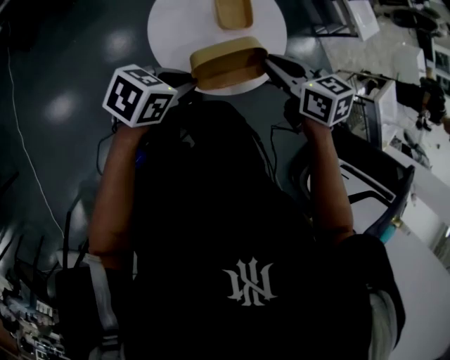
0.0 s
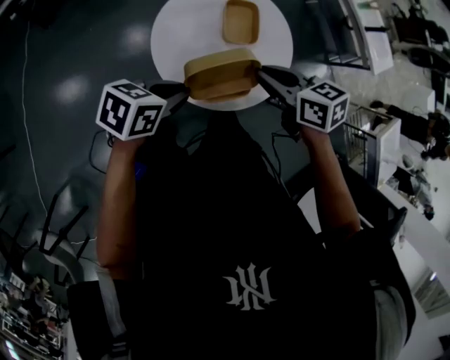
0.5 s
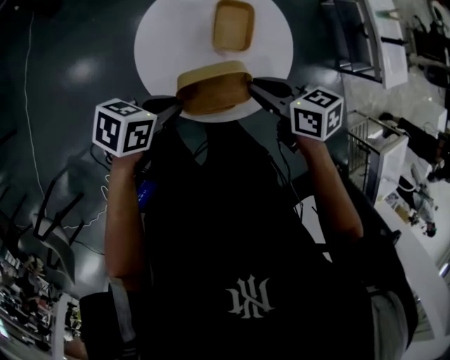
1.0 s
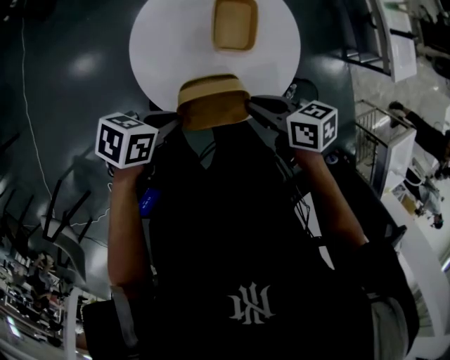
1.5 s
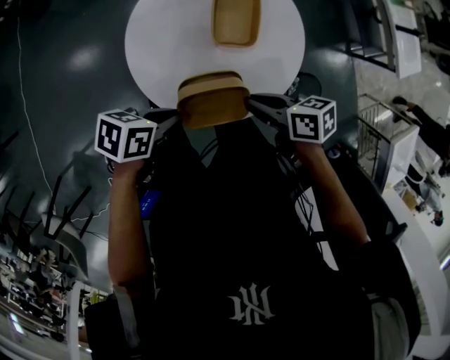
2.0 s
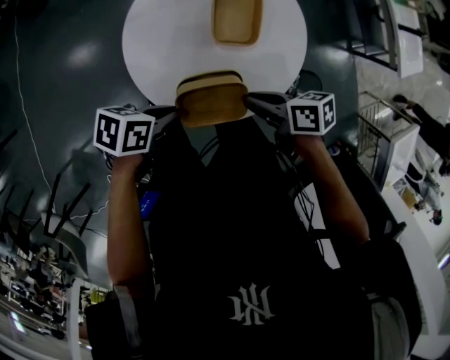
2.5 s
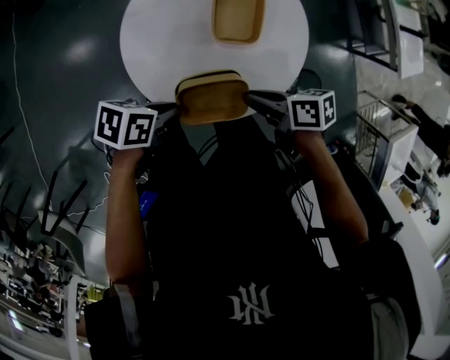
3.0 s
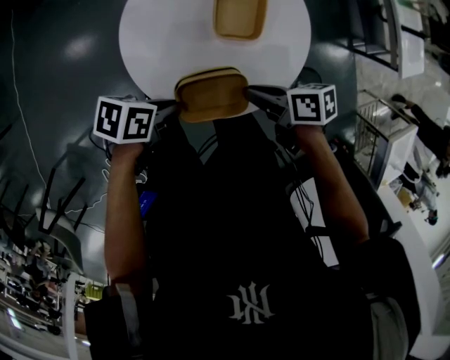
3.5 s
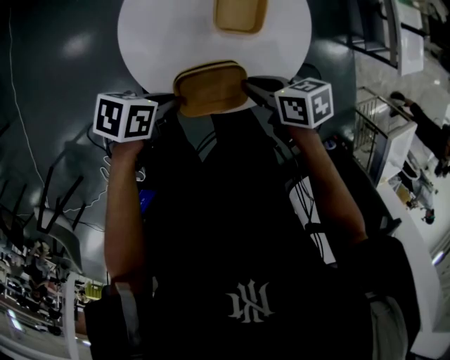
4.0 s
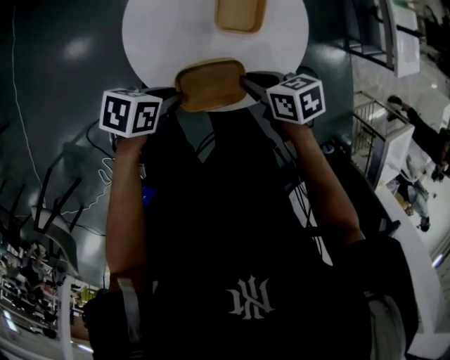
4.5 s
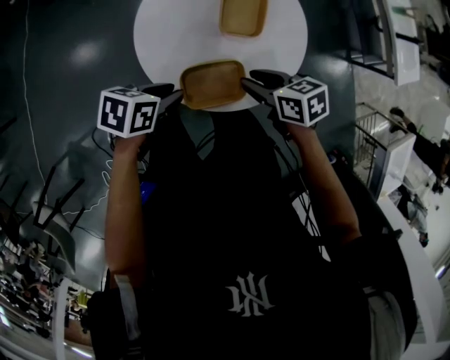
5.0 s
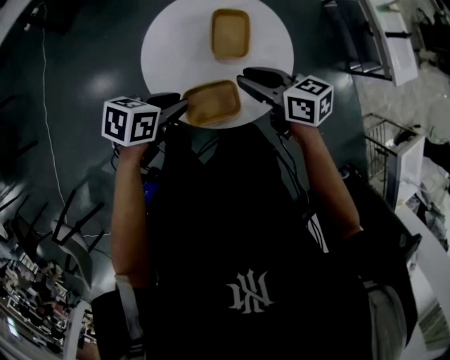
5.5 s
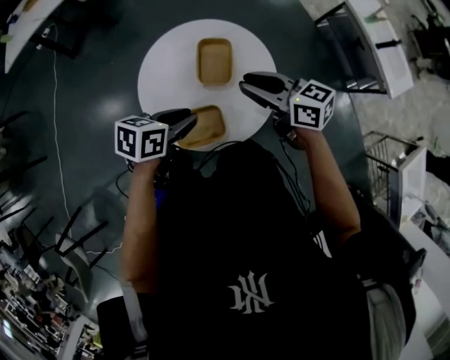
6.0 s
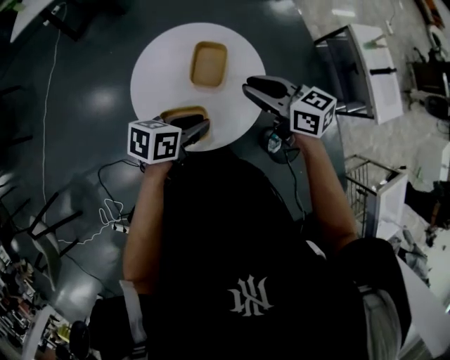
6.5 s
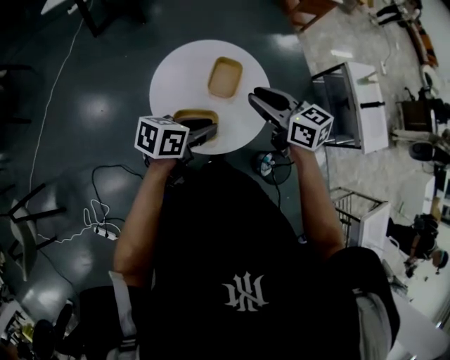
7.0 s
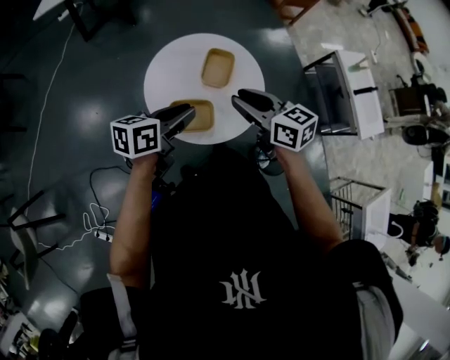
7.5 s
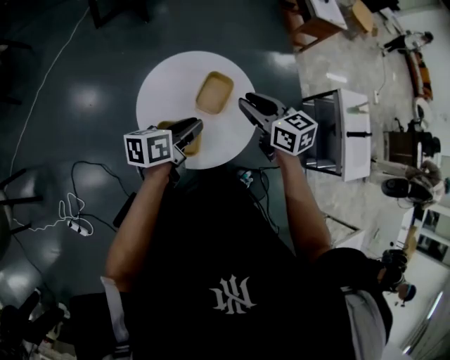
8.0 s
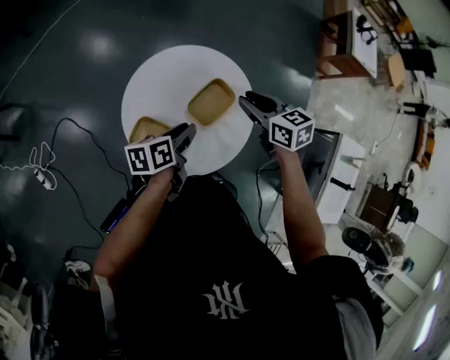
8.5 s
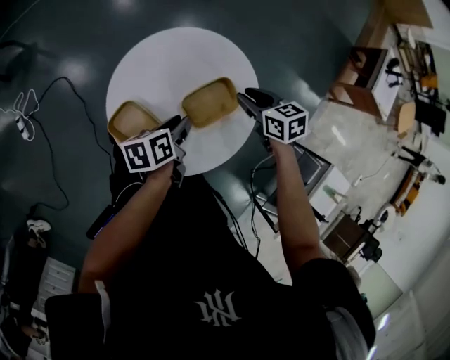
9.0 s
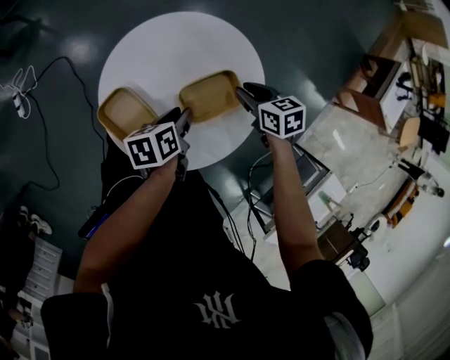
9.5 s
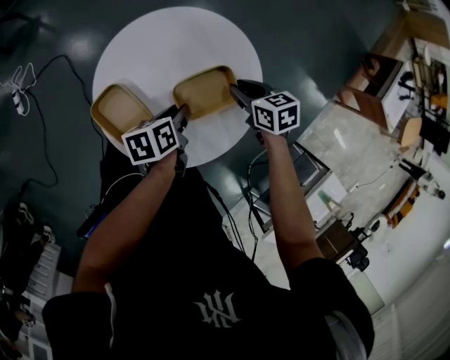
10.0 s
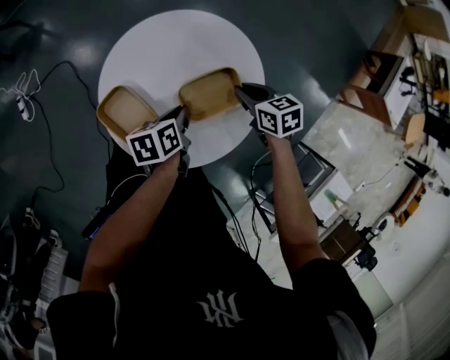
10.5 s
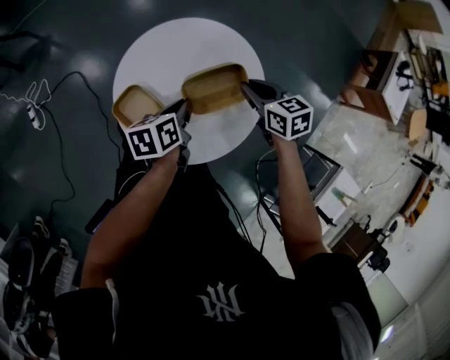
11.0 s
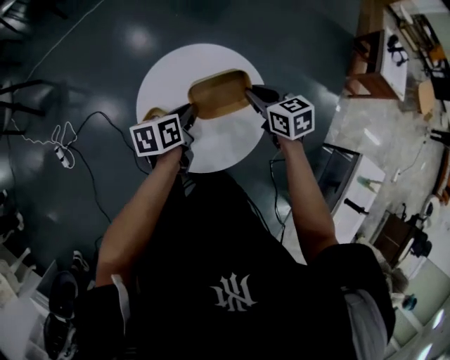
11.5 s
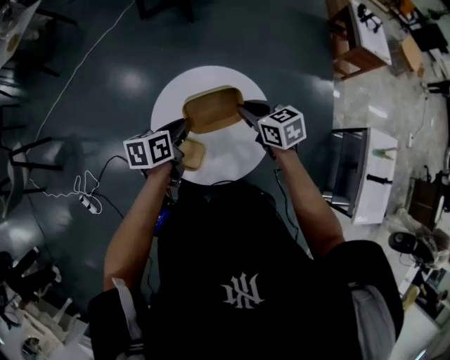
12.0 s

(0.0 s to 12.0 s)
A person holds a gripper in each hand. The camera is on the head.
0.0 s - 2.0 s: Both grippers move downward, roughly 15 cm. The right gripper changes its angle by some 40 degrees; the left gripper rotates roughly 30 degrees.
2.0 s - 4.0 s: There are only small adjustments of the grippers.
4.0 s - 6.0 s: The grippers both shift upward by about 15 cm. The left gripper turns by about 30 degrees; the right gripper tilts its fingers roughly 30 degrees upward.
6.0 s - 8.0 s: The left gripper goes left and right, roughly 10 cm each way, reversing 2 times, and changes its angle by about 40 degrees, while the right gripper rotates about 20 degrees.
8.0 s - 10.0 s: Both grippers move downward, approximately 20 cm. The left gripper swivels approximately 60 degrees, while the right gripper turns by approximately 50 degrees.
10.0 s - 12.0 s: Both grippers move upward, about 20 cm. The left gripper swivels some 40 degrees, and closes. Meanwhile the right gripper changes its angle by about 30 degrees.

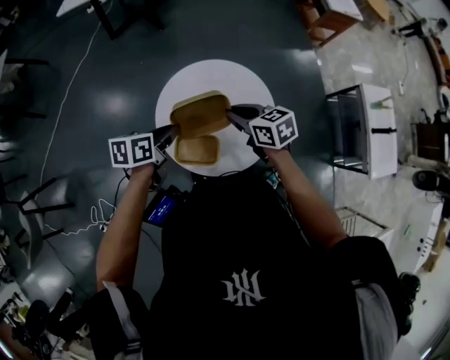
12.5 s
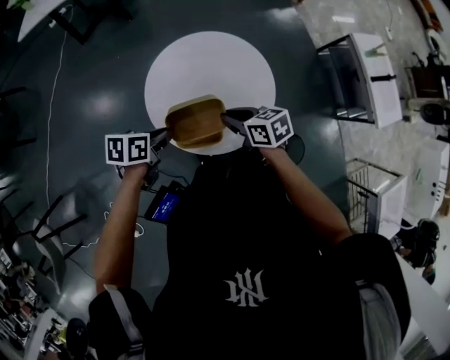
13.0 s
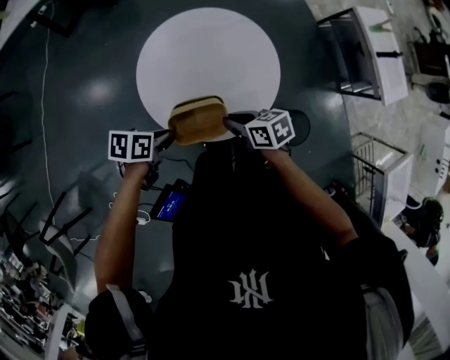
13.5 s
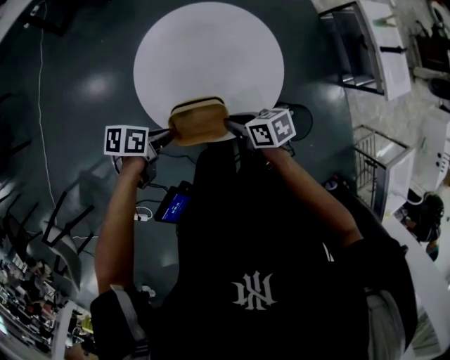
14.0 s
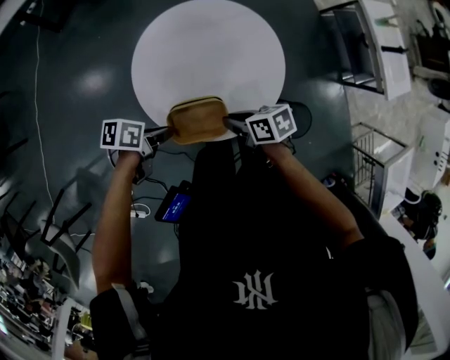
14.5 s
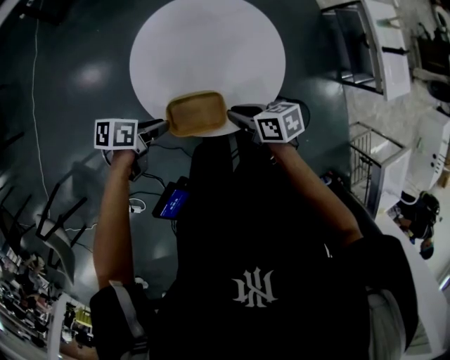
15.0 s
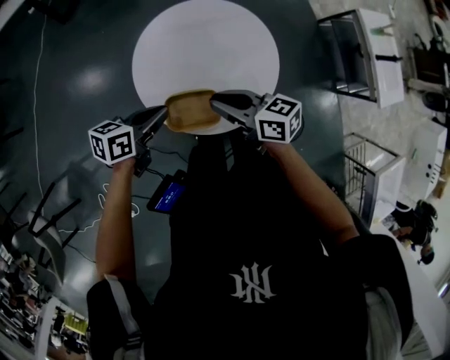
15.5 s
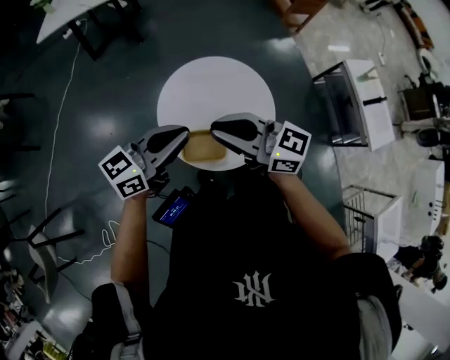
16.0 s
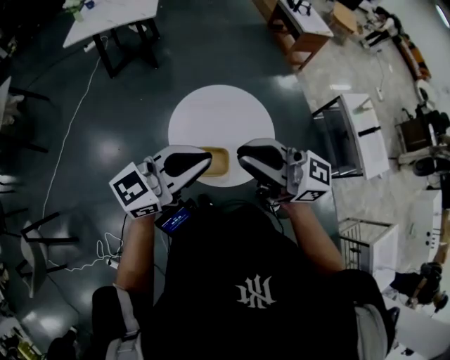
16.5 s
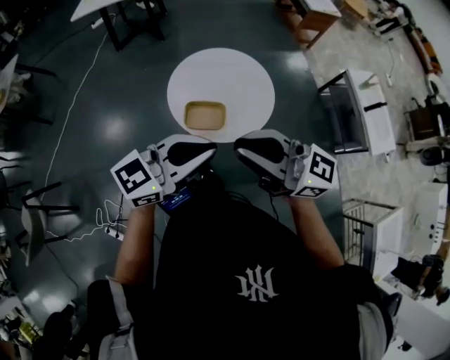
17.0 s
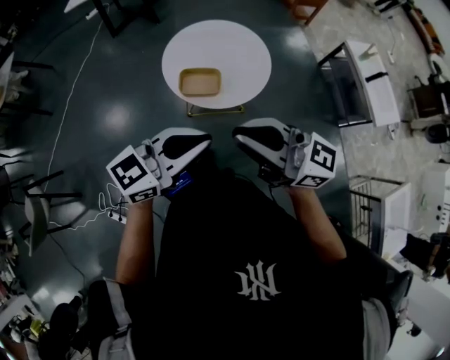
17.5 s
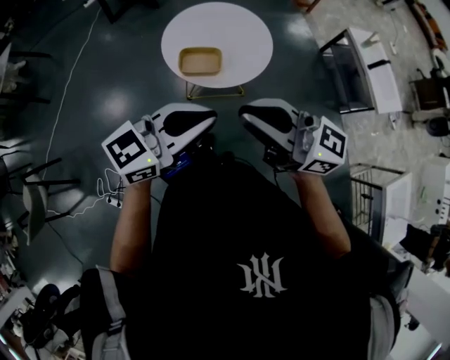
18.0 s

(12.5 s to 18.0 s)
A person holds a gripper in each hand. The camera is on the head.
12.5 s - 14.5 s: Both grippers move downward, roughly 15 cm. The left gripper rotates about 40 degrees; the right gripper changes its angle by some 40 degrees.
14.5 s - 16.0 s: Both grippers move upward, approximately 30 cm. The right gripper angles its fingers upward, by roughly 40 degrees, while the left gripper points its fingers approximately 40 degrees further upward.
16.0 s - 18.0 s: The left gripper ends up some 30 cm from where it was, while the right gripper shifts by roughly 30 cm.

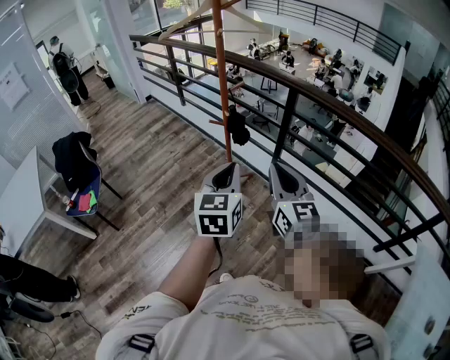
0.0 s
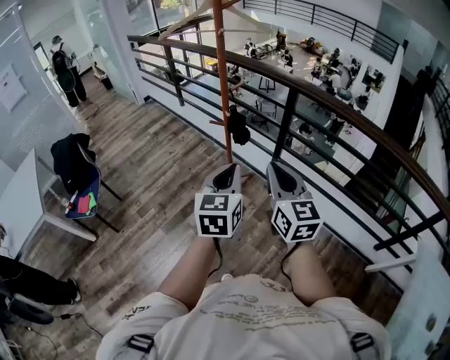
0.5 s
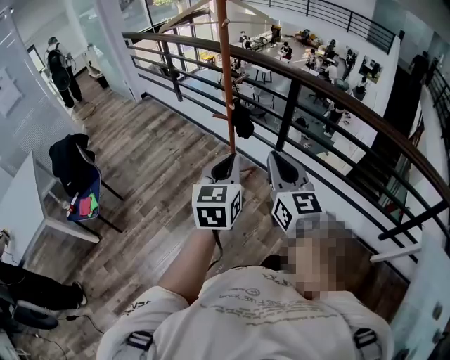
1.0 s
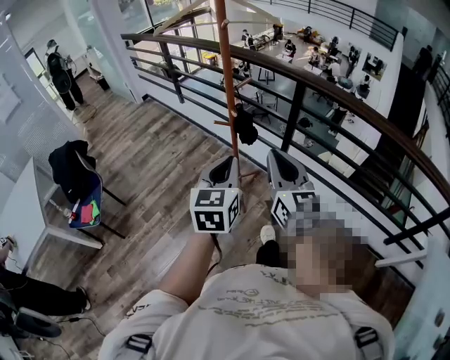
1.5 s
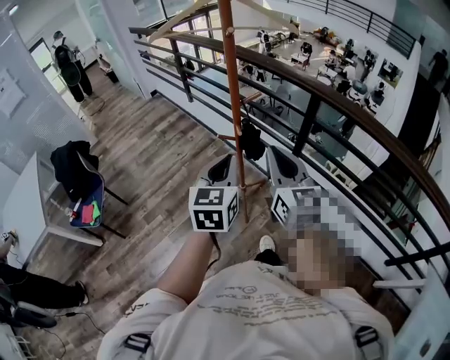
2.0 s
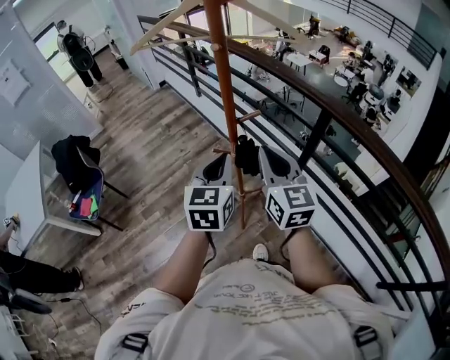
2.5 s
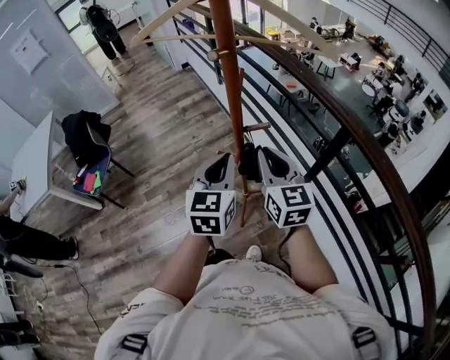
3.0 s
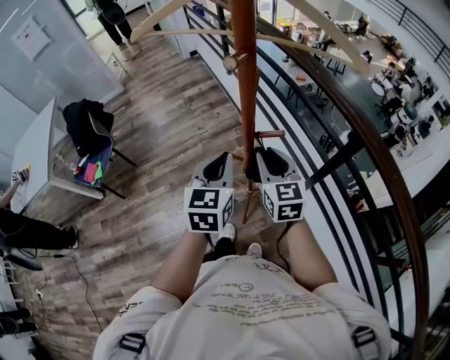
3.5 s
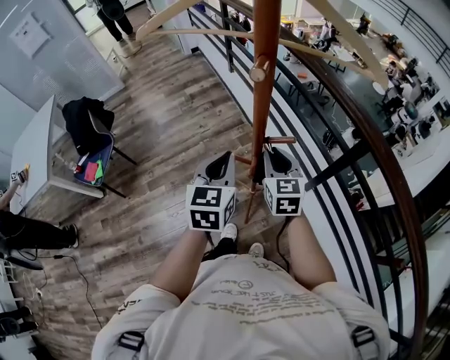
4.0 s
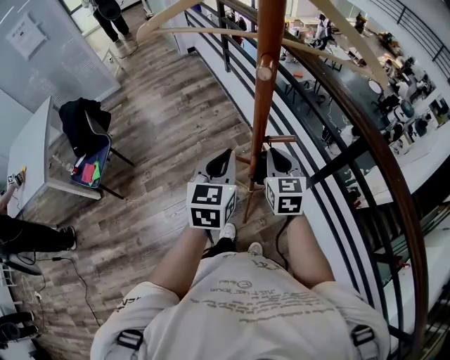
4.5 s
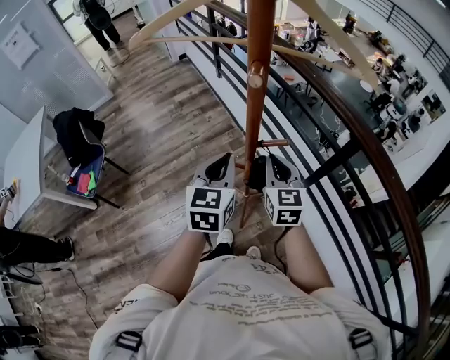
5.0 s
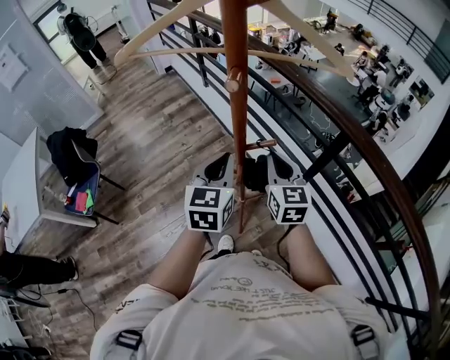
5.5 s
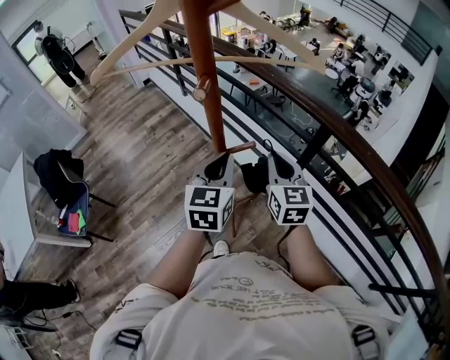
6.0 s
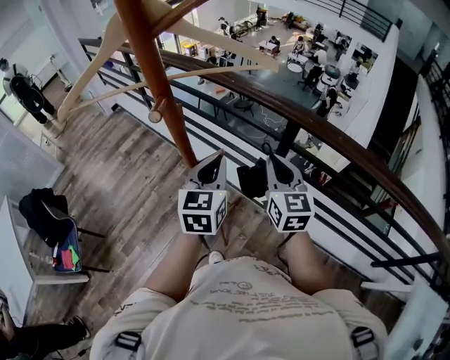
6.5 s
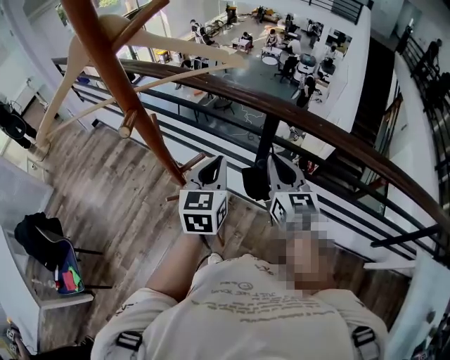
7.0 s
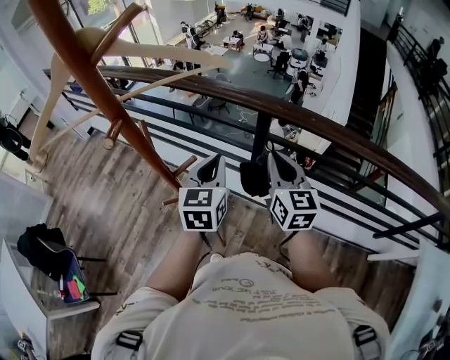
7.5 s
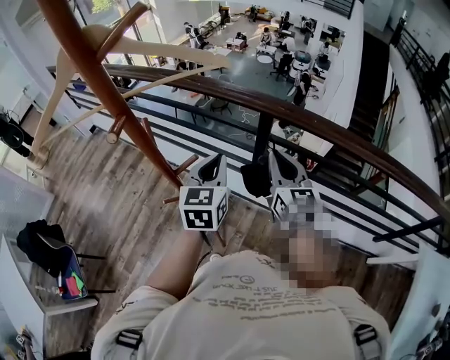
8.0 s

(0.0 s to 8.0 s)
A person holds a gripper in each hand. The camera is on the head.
0.0 s - 2.0 s: The two grippers go approximately 20 cm forward.
2.0 s - 4.0 s: The left gripper travels forward by roughly 20 cm; the right gripper travels forward and downward by some 30 cm, and turns by roughly 30 degrees.
4.0 s - 6.0 s: The left gripper shifts some 10 cm to the right, while the right gripper moves to the right and upward, approximately 10 cm.
6.0 s - 8.0 s: The two grippers go about 15 cm to the right. The right gripper rotates some 20 degrees.

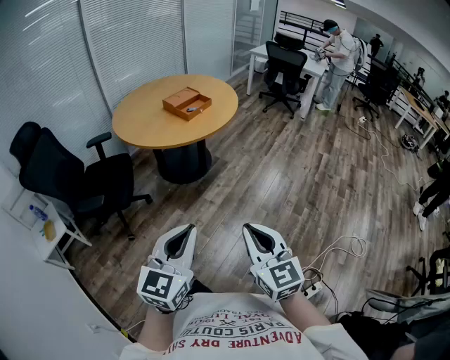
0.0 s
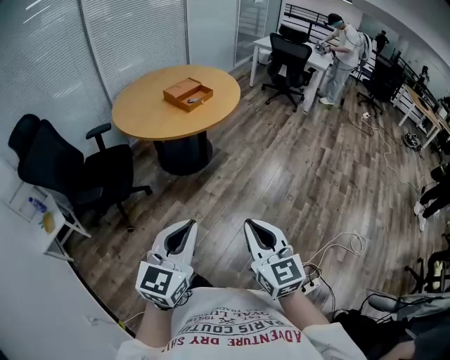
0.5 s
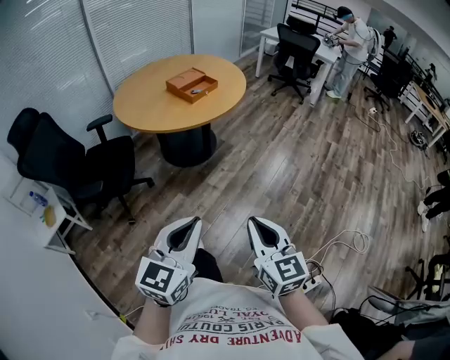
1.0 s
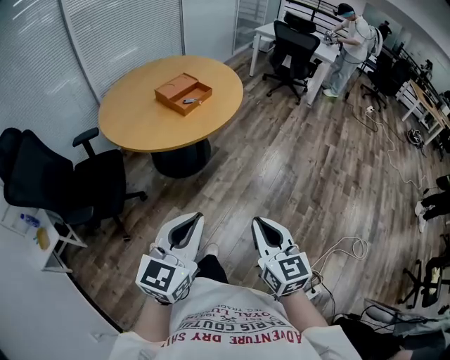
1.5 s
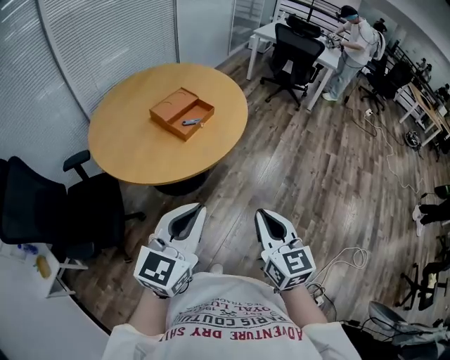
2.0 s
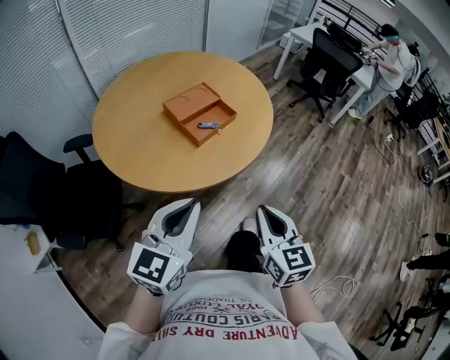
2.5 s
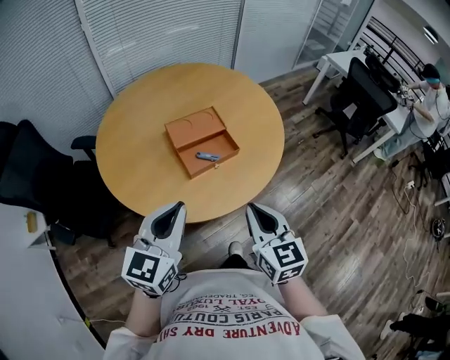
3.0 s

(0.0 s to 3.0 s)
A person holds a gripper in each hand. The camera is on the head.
0.0 s - 1.5 s: Both grippers travel together forward, approximately 20 cm.
1.5 s - 3.0 s: Both grippers are carried some 50 cm. The right gripper changes its angle by approximately 20 degrees; the left gripper rotates some 30 degrees.
